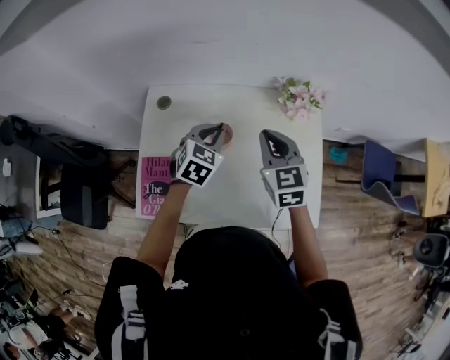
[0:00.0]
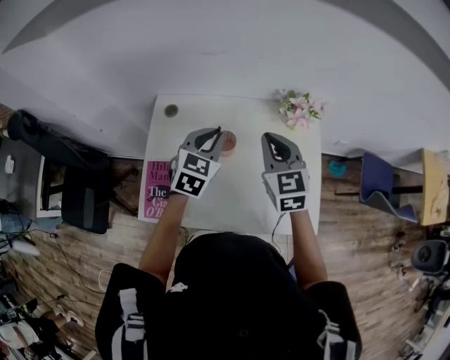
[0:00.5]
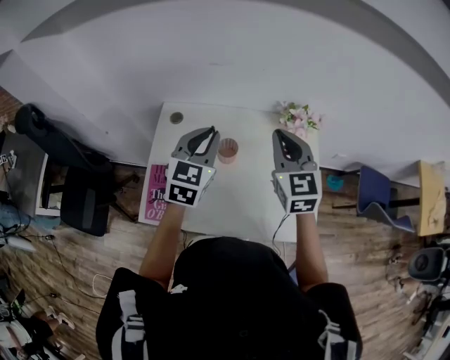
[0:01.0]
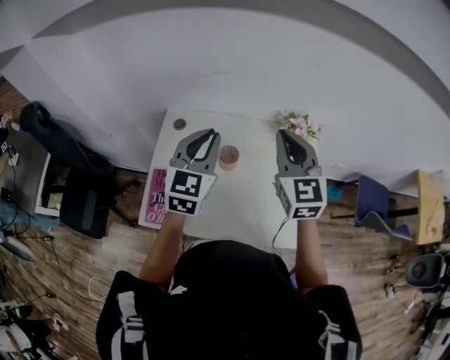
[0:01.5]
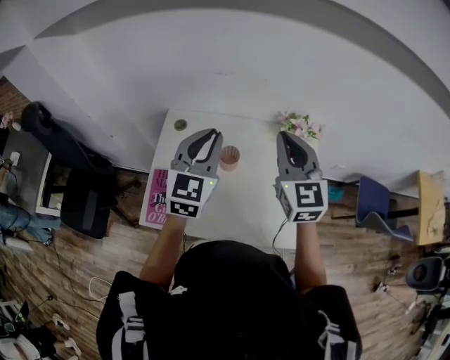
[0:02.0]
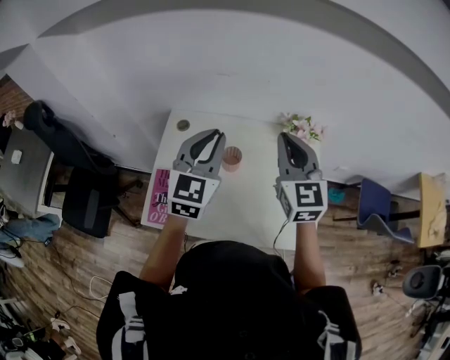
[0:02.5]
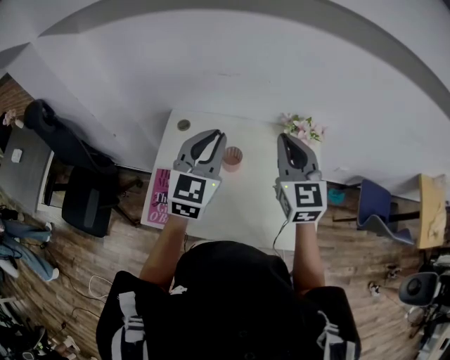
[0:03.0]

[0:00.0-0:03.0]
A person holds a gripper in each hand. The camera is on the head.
0:00.0 to 0:01.5: The two grippers go about 20 cm upward. The left gripper turns by some 30 degrees.
0:01.5 to 0:03.0: There are only small adjustments of the grippers.

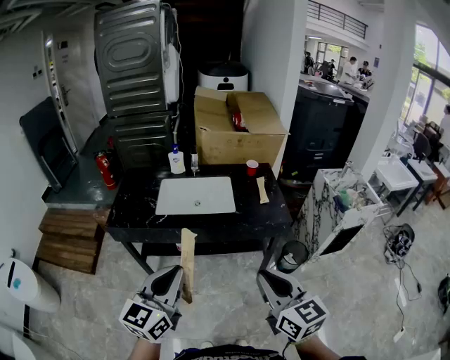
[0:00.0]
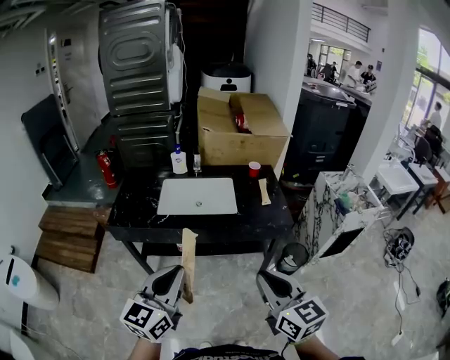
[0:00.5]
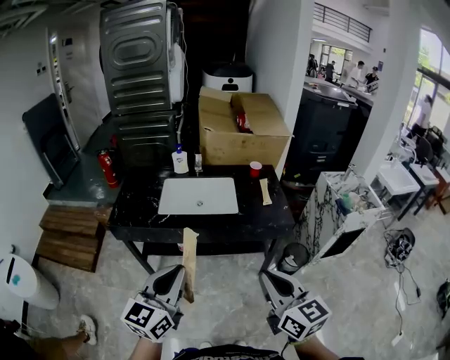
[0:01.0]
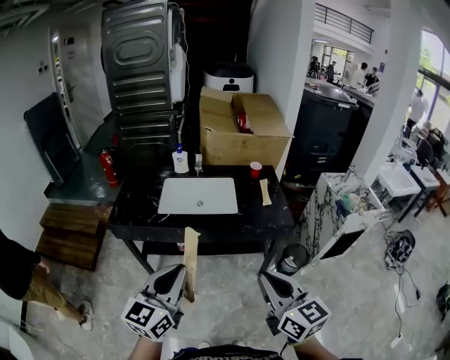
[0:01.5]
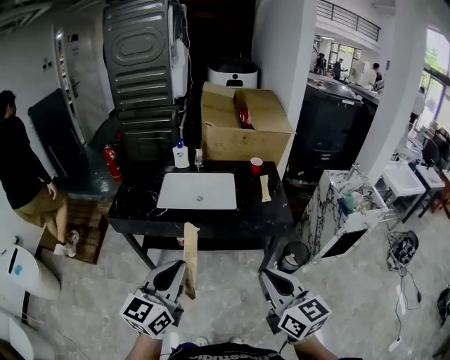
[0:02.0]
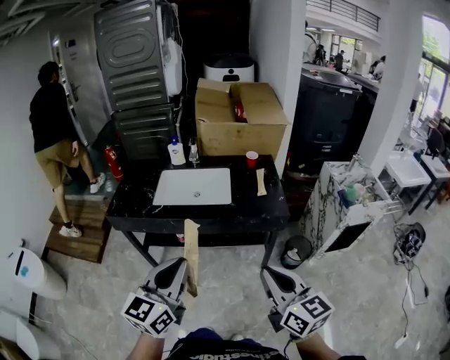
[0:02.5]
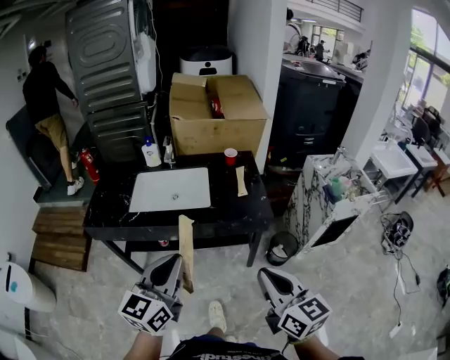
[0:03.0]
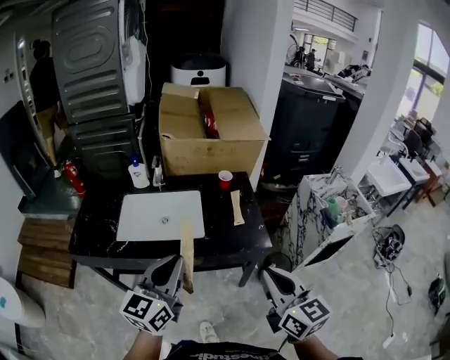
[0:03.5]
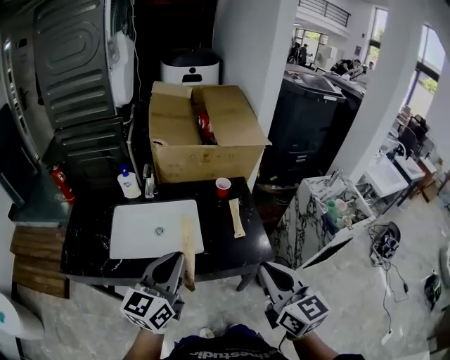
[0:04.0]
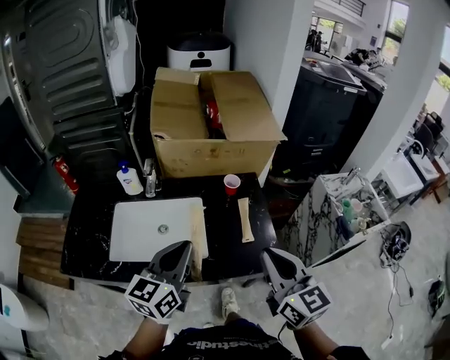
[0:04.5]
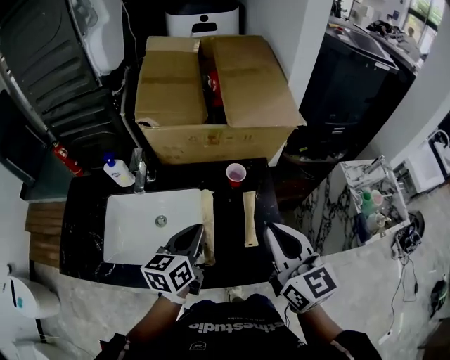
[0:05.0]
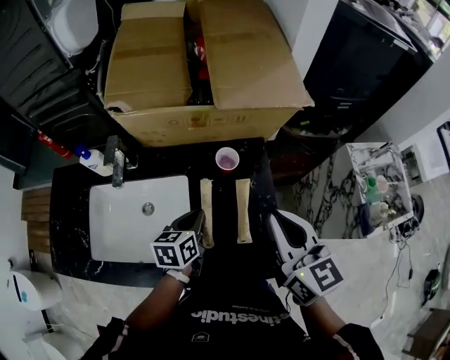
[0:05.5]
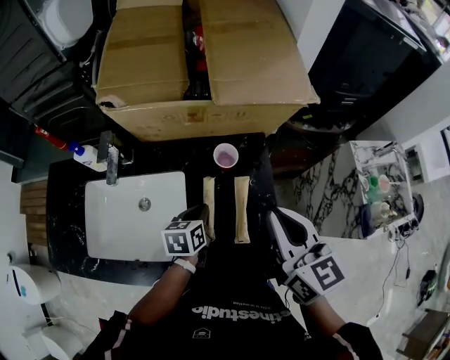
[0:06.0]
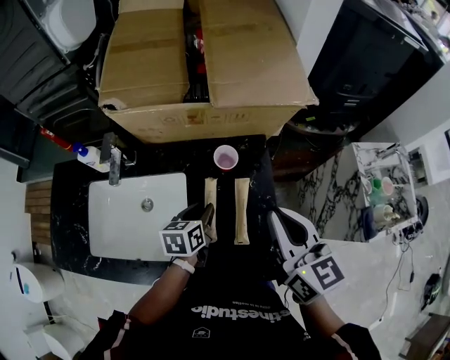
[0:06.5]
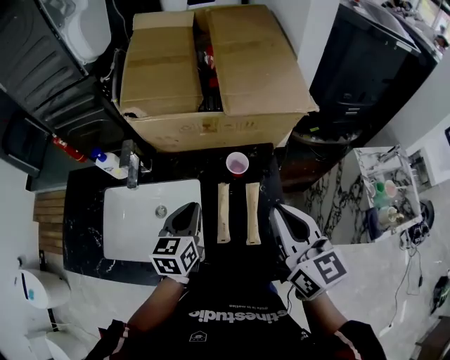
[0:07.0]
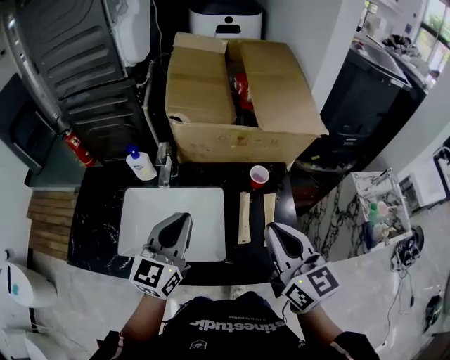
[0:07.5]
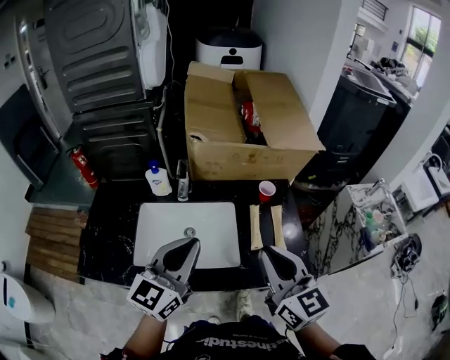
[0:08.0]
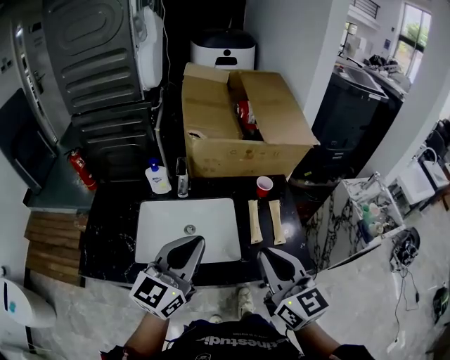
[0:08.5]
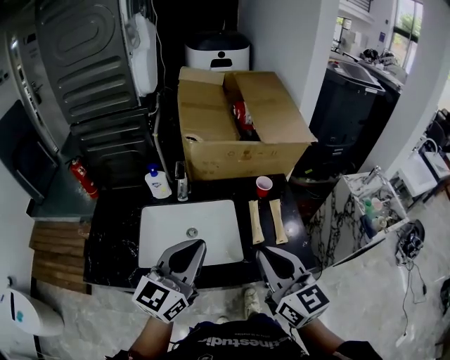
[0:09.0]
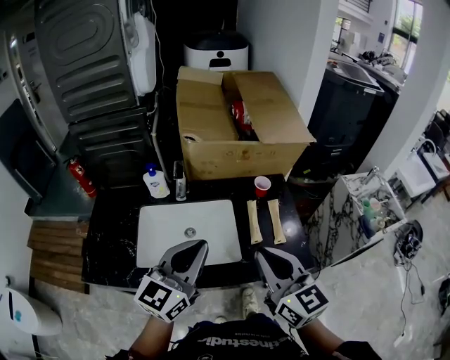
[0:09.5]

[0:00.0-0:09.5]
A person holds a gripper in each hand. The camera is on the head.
0:00.0 to 0:02.0: The grippers make only small movements.
0:02.0 to 0:04.0: The grippers both shift forward by roughly 30 cm.
0:04.0 to 0:05.5: The right gripper shifts about 35 cm forward; the left gripper is displaced forward and downward by approximately 40 cm, and angles its fingers downward, by some 40 degrees.
0:05.5 to 0:07.5: The left gripper travels upward, to the left and backward by about 25 cm, tilts its fingers some 30 degrees upward, and opens, then closes again. The right gripper heads to the left, backward and upward, covering some 15 cm.
0:07.5 to 0:09.5: The right gripper heads backward and to the left, covering some 15 cm, while the left gripper moves backward and upward, approximately 15 cm.

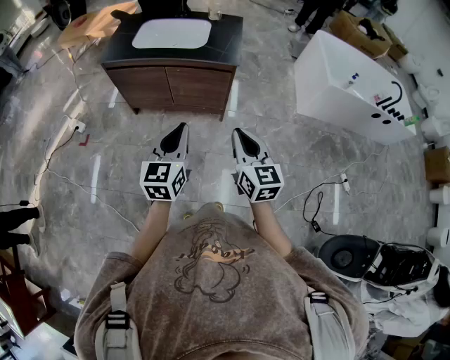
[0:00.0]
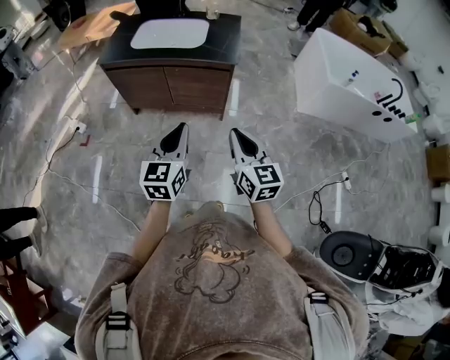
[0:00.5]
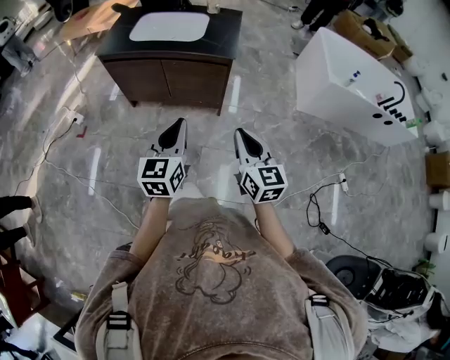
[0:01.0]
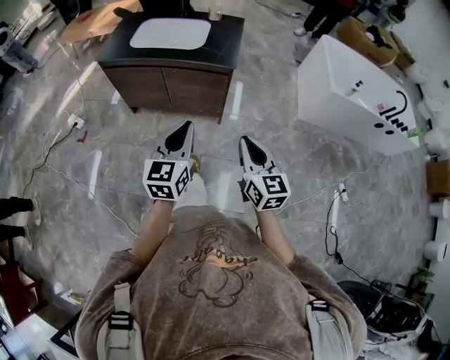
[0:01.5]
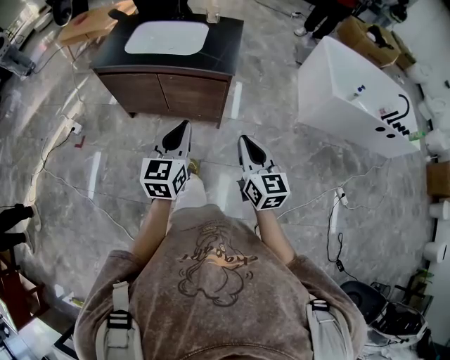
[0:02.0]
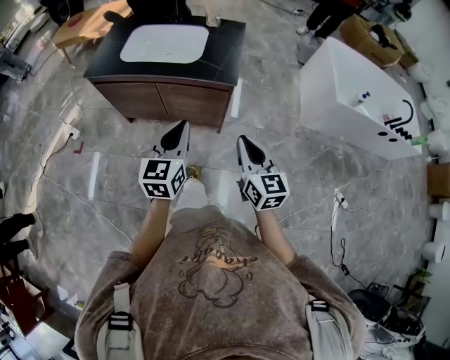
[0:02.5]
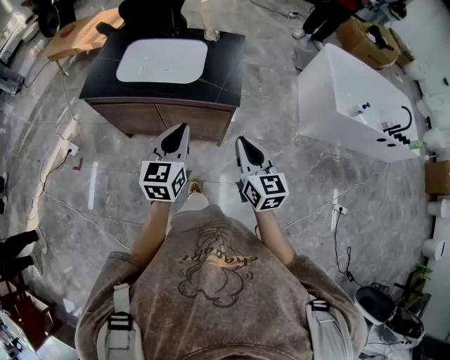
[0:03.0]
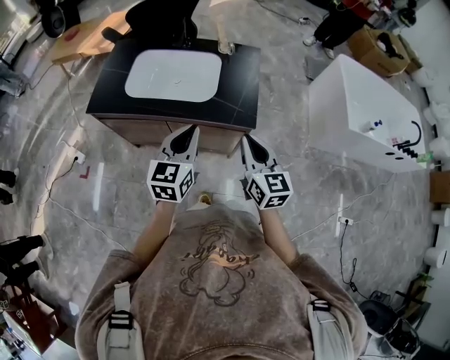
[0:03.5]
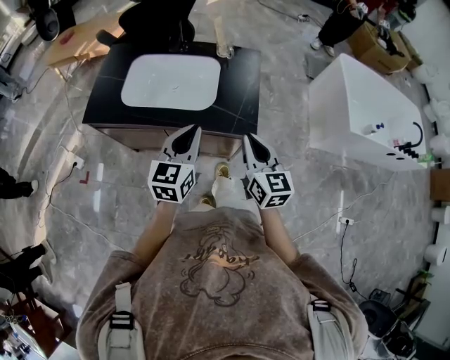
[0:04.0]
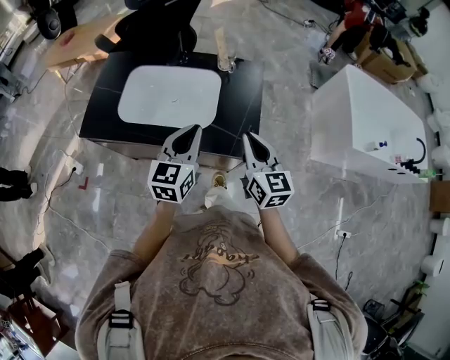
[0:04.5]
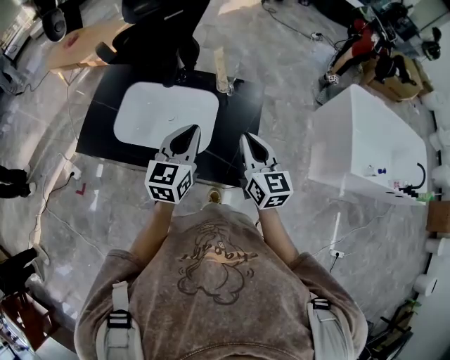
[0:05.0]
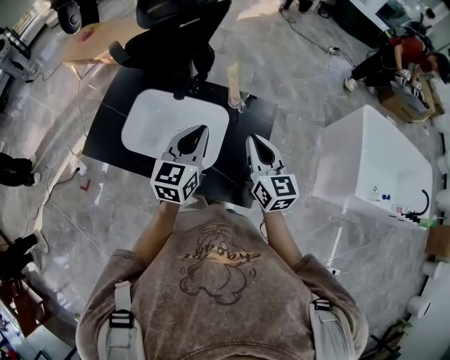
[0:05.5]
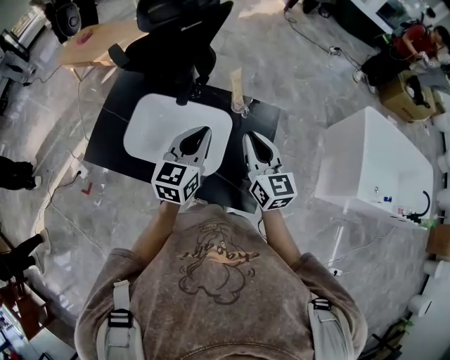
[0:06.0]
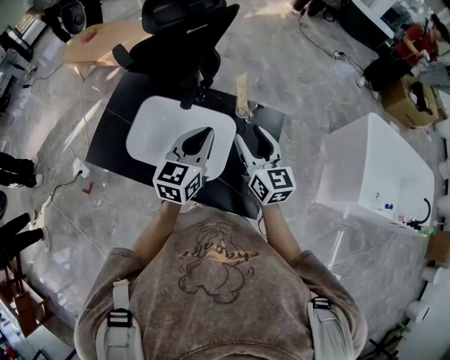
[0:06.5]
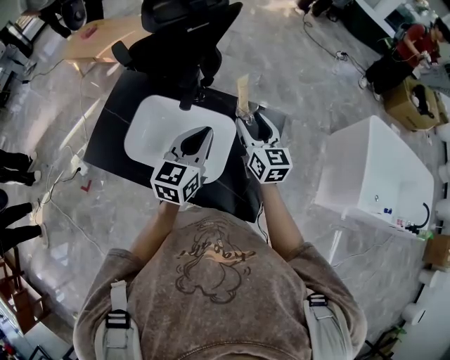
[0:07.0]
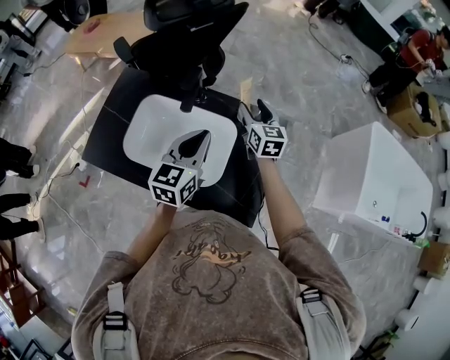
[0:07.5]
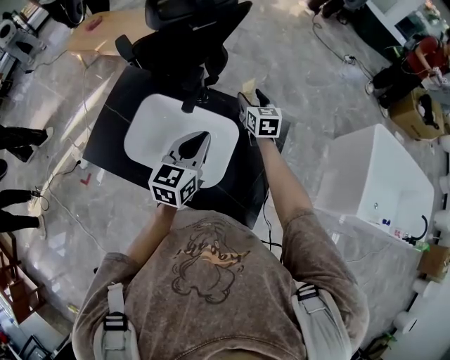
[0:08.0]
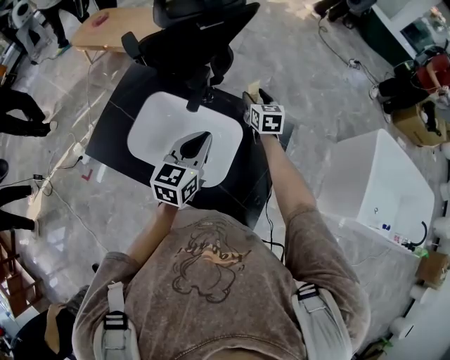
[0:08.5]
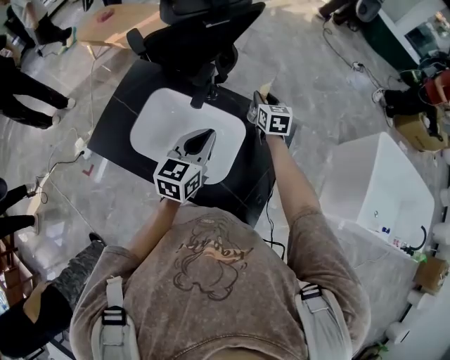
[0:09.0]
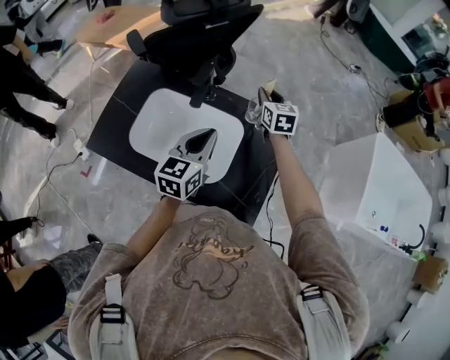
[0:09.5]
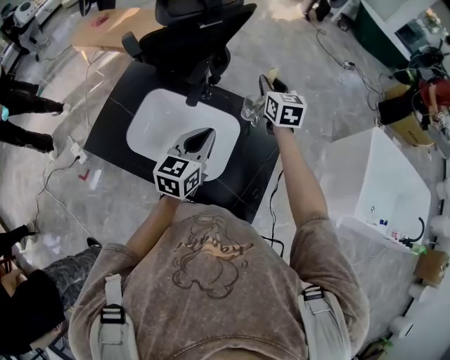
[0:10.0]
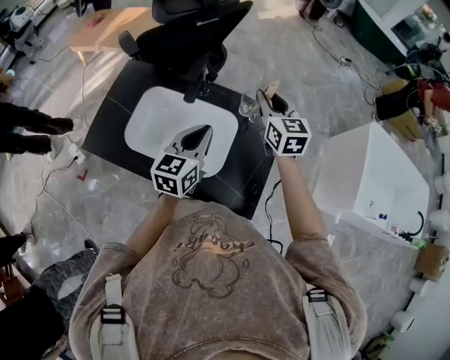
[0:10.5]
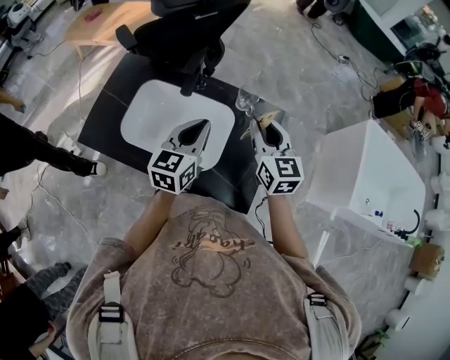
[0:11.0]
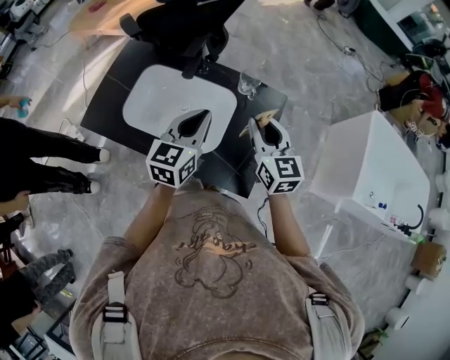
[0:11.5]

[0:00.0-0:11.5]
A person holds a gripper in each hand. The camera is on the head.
0:00.0 to 0:02.0: The left gripper heads forward and to the right, covering approximately 10 cm; the right gripper is displaced to the right and forward by roughly 10 cm.
0:02.0 to 0:04.0: The grippers both shift forward by about 35 cm.
0:04.0 to 0:06.0: The two grippers go some 30 cm forward.
0:06.0 to 0:07.5: The left gripper shifts by some 5 cm, while the right gripper goes roughly 20 cm forward and downward, and opens its fingers.
0:07.5 to 0:09.5: The right gripper moves forward, roughly 5 cm, and closes up.
0:09.5 to 0:11.5: The left gripper moves backward, approximately 5 cm. Meanwhile the right gripper is displaced backward by roughly 25 cm.

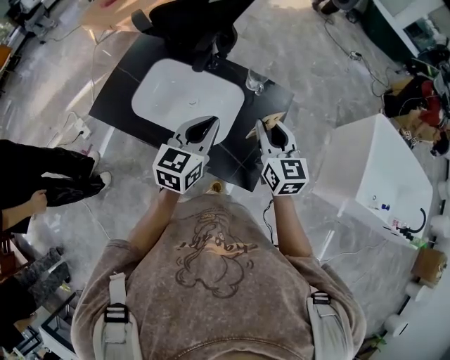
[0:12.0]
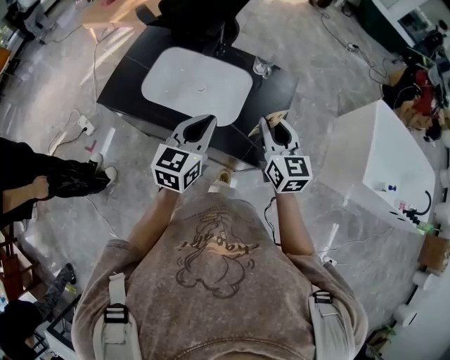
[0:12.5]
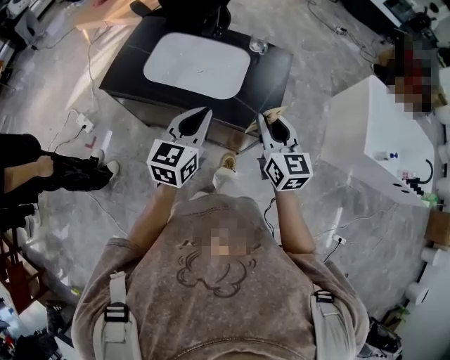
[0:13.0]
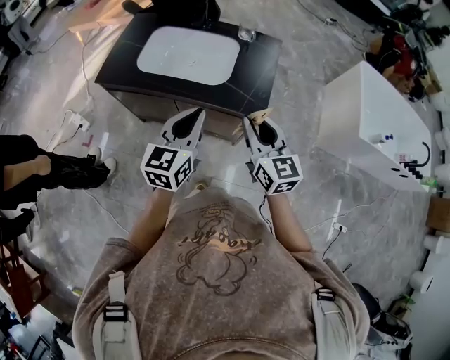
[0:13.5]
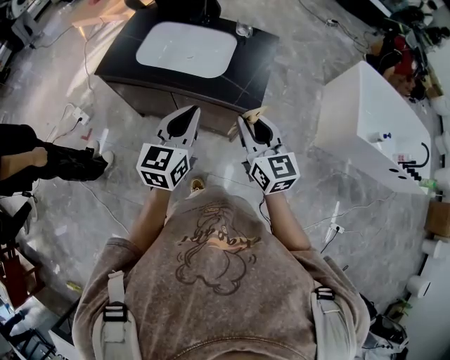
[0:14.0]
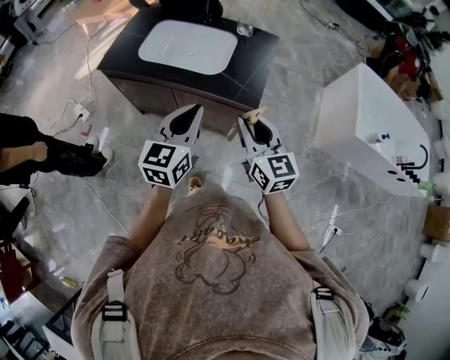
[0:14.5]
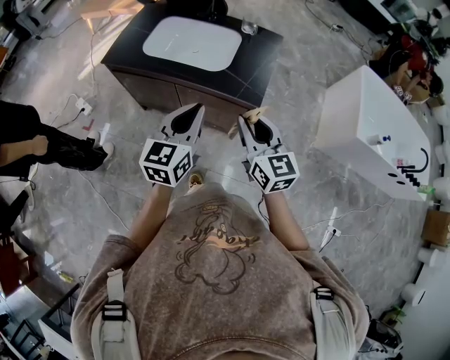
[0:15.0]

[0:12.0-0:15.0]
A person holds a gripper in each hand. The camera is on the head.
0:12.0 to 0:13.5: The grippers both shift backward by some 25 cm.
0:13.5 to 0:15.0: Both grippers move backward, roughly 5 cm.
